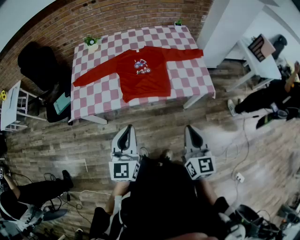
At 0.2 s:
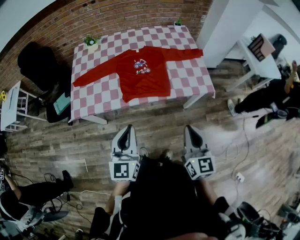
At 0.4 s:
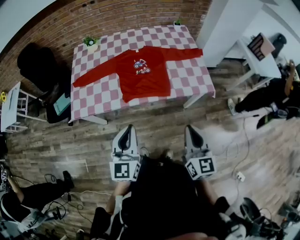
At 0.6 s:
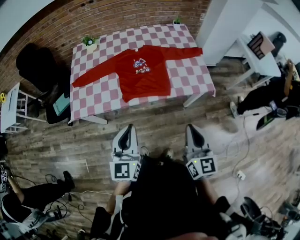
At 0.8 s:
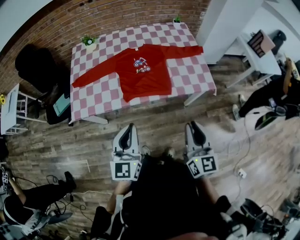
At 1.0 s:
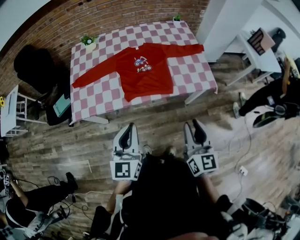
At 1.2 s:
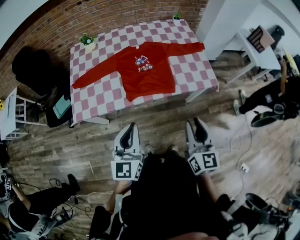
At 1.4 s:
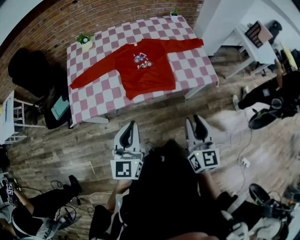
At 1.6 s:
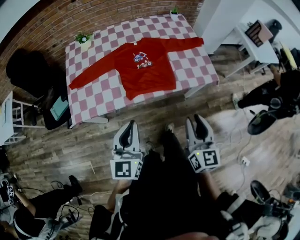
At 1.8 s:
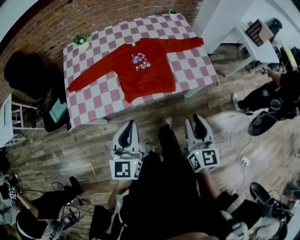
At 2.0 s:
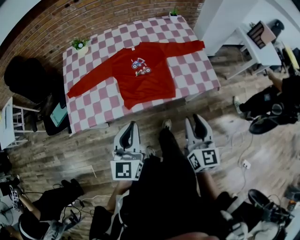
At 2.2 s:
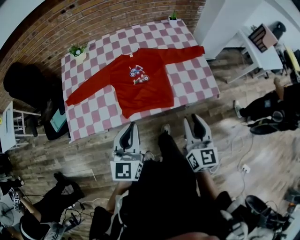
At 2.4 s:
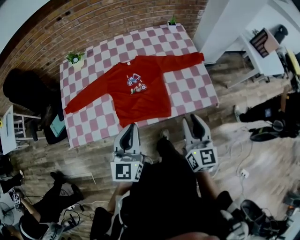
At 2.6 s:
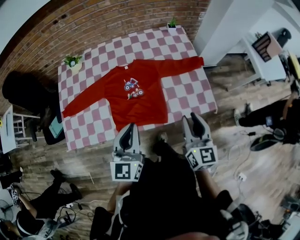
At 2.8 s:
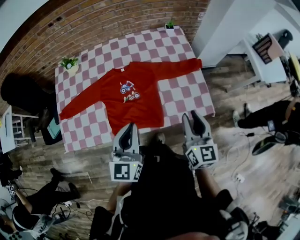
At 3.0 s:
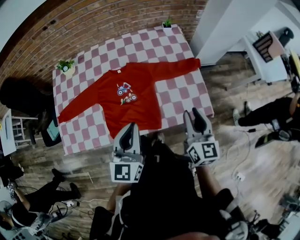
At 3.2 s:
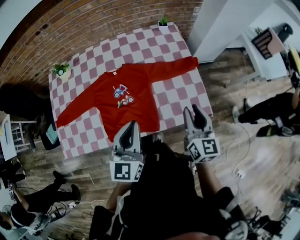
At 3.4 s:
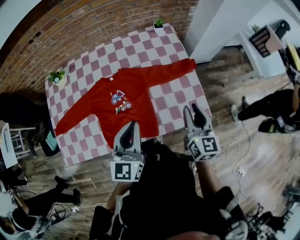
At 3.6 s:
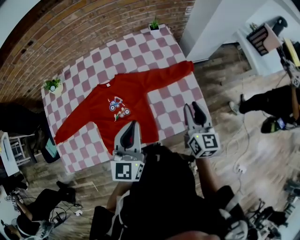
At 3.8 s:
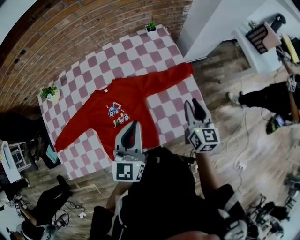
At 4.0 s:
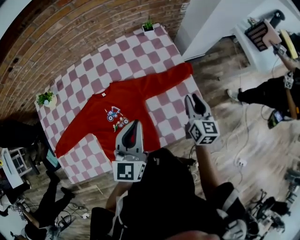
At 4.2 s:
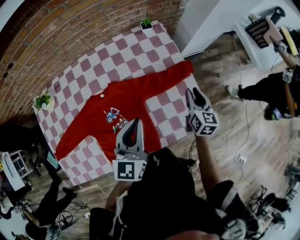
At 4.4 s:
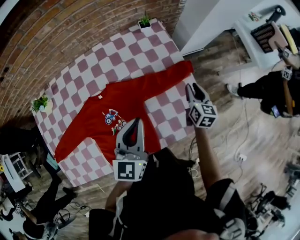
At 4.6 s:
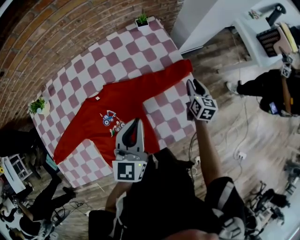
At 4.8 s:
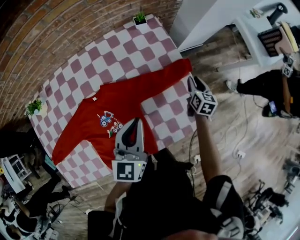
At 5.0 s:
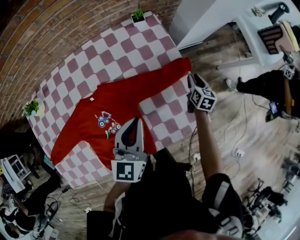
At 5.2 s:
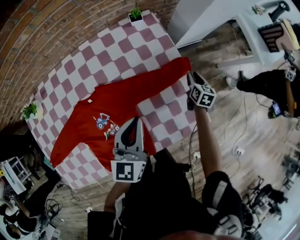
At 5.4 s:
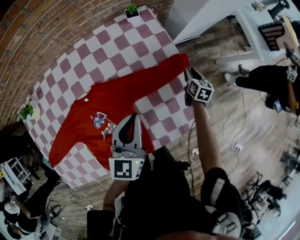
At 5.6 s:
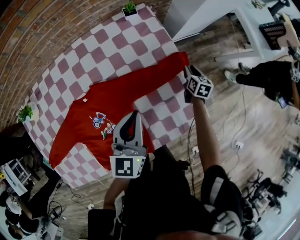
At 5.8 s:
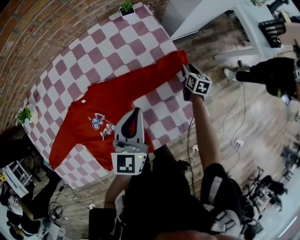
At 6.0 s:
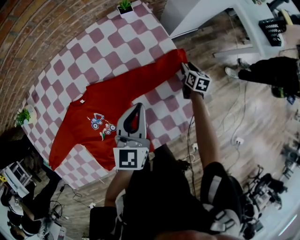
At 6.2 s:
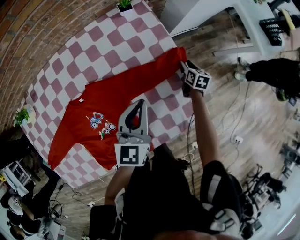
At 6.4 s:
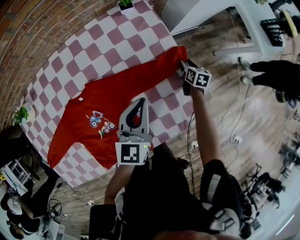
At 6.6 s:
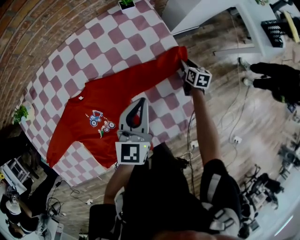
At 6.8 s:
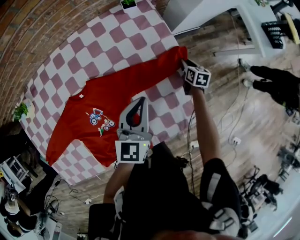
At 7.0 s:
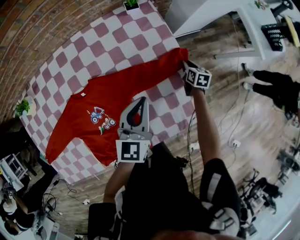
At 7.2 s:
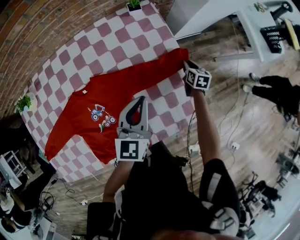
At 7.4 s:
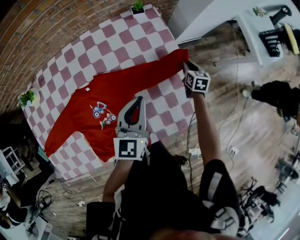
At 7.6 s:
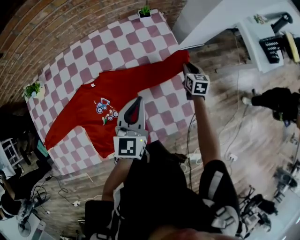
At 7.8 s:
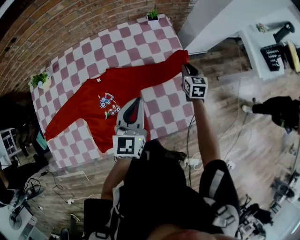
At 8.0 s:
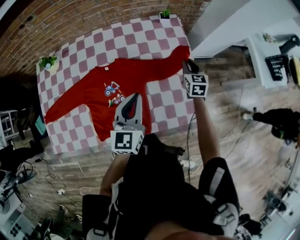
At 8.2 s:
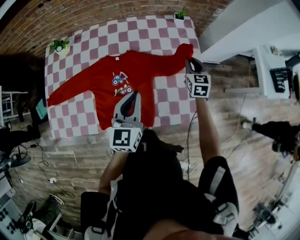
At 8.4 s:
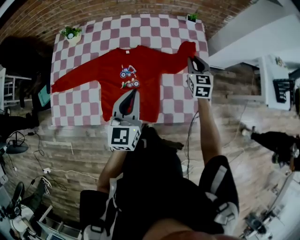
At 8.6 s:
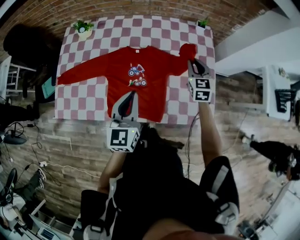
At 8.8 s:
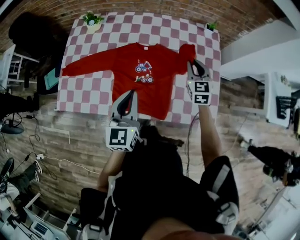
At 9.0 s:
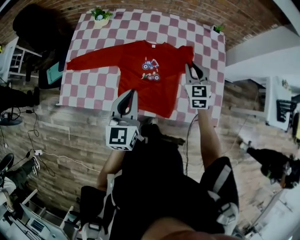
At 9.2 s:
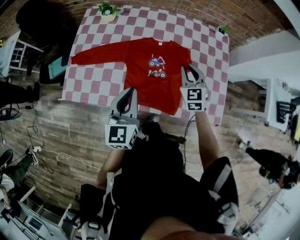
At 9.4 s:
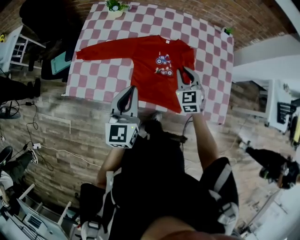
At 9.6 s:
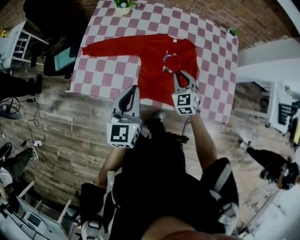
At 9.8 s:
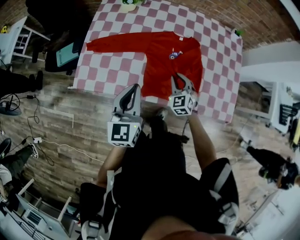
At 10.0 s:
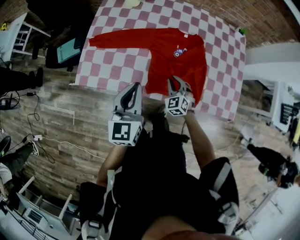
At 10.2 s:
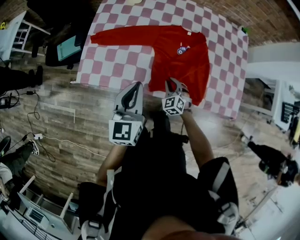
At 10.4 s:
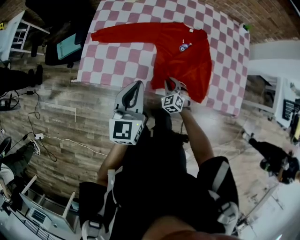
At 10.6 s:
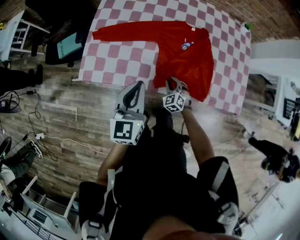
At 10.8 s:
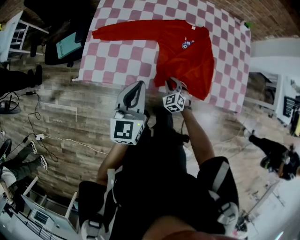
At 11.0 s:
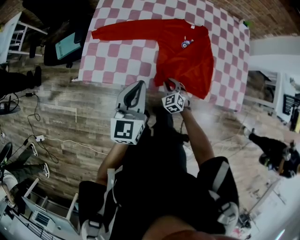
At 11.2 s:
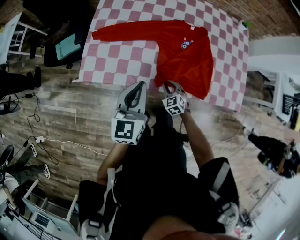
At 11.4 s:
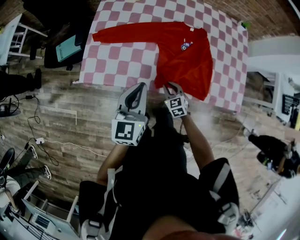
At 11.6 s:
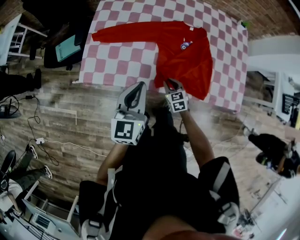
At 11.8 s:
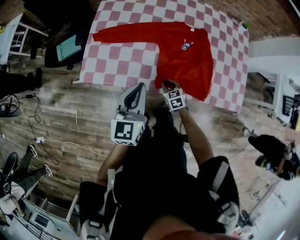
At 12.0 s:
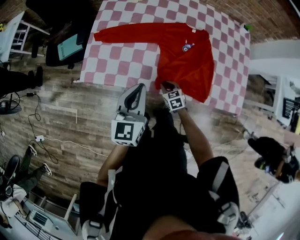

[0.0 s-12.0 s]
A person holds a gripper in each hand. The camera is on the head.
0.0 to 1.6 s: Both grippers travel together to the left, about 5 cm. The right gripper opens.
1.6 to 3.0 s: The grippers both shift forward and to the right by roughly 35 cm.
3.0 to 4.4 s: The right gripper goes some 35 cm forward and downward, and swivels some 20 degrees; the left gripper shifts some 25 cm forward.
4.4 to 6.0 s: The right gripper heads downward, forward and to the right, covering roughly 25 cm; the left gripper shifts approximately 15 cm forward, downward and to the right.
6.0 to 7.6 s: The left gripper travels backward by about 5 cm. The right gripper is displaced upward and to the left by some 10 cm, and turns by roughly 20 degrees.
7.6 to 9.0 s: The right gripper changes place by approximately 40 cm, and rotates some 50 degrees. The left gripper changes place by roughly 35 cm, and changes its angle by some 30 degrees.
9.0 to 10.4 s: The left gripper heads to the left, covering roughly 20 cm; the right gripper moves downward, to the left and backward, roughly 40 cm, and rotates about 30 degrees.
10.4 to 12.0 s: The right gripper swivels roughly 30 degrees.

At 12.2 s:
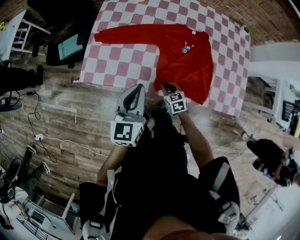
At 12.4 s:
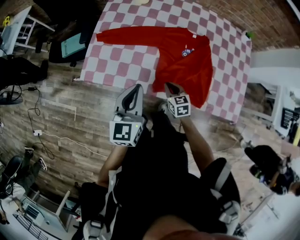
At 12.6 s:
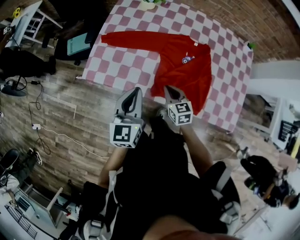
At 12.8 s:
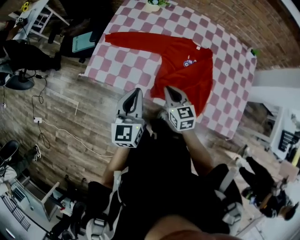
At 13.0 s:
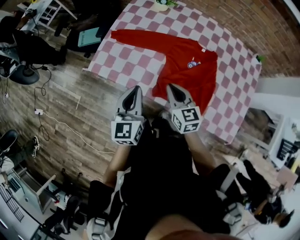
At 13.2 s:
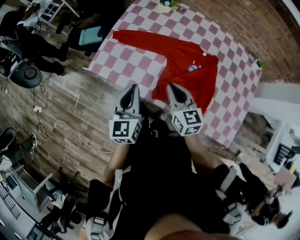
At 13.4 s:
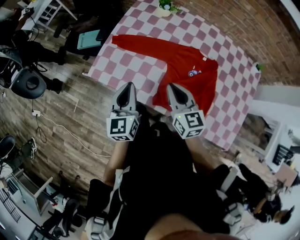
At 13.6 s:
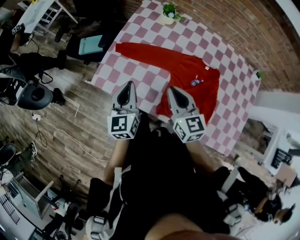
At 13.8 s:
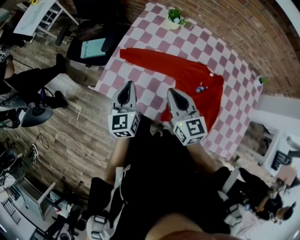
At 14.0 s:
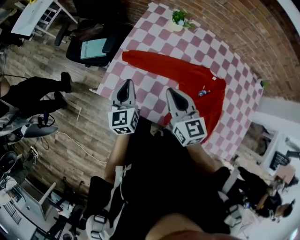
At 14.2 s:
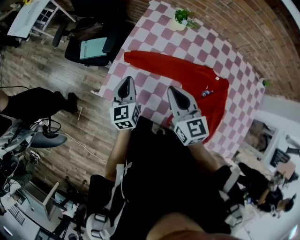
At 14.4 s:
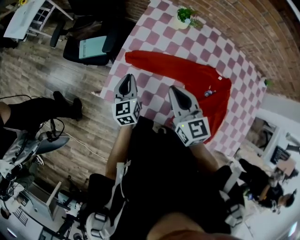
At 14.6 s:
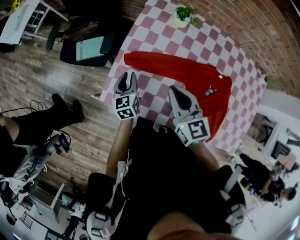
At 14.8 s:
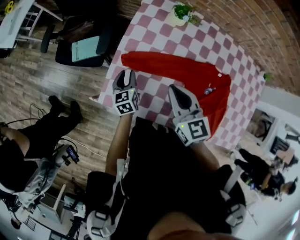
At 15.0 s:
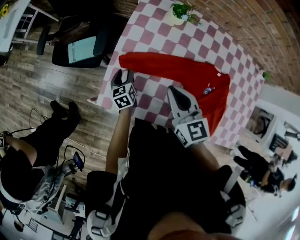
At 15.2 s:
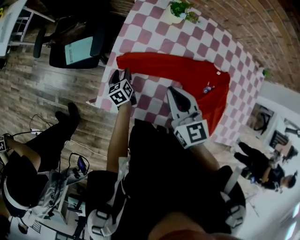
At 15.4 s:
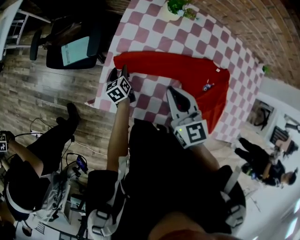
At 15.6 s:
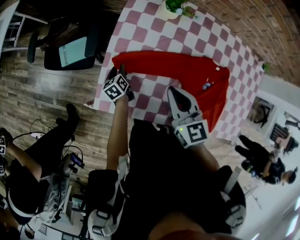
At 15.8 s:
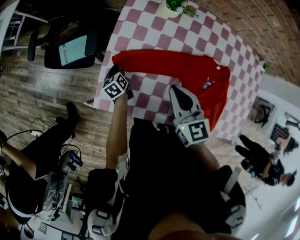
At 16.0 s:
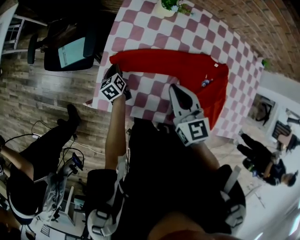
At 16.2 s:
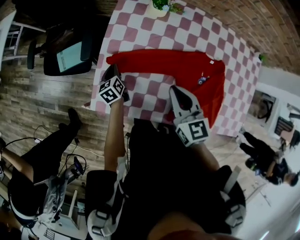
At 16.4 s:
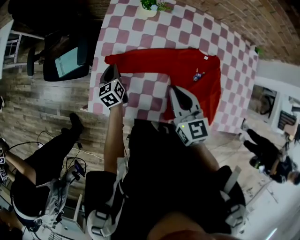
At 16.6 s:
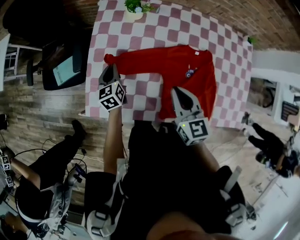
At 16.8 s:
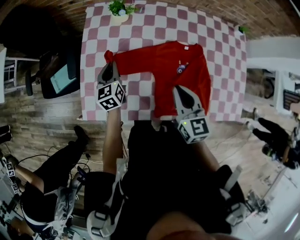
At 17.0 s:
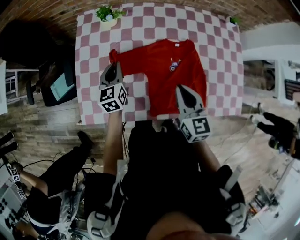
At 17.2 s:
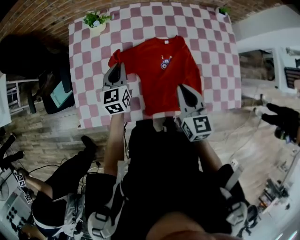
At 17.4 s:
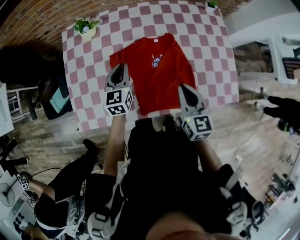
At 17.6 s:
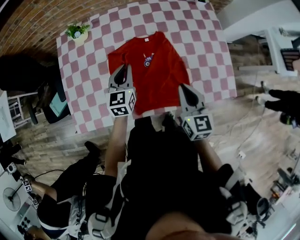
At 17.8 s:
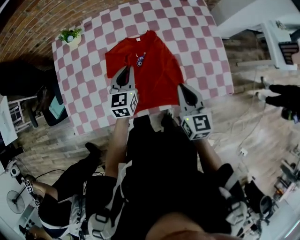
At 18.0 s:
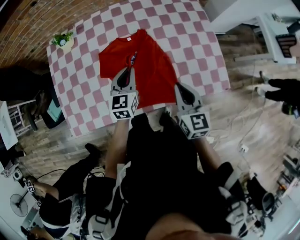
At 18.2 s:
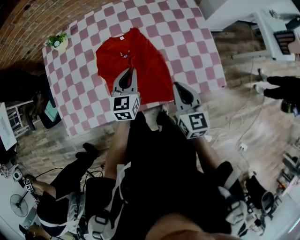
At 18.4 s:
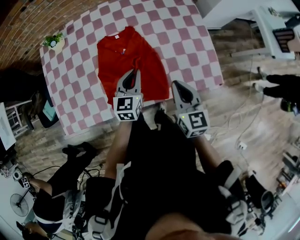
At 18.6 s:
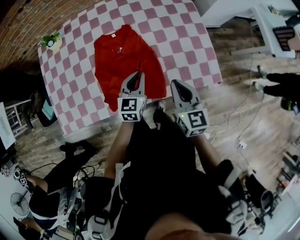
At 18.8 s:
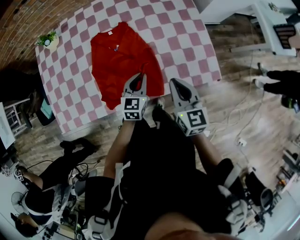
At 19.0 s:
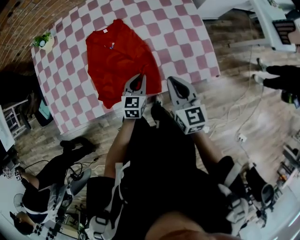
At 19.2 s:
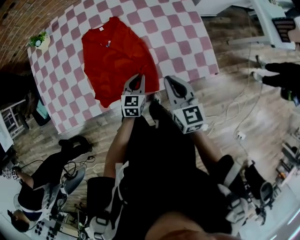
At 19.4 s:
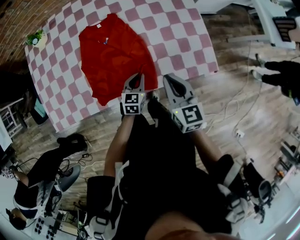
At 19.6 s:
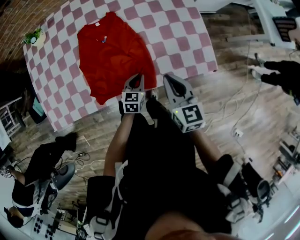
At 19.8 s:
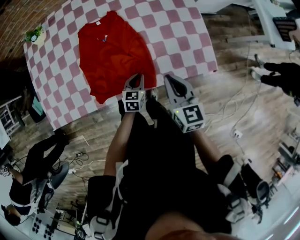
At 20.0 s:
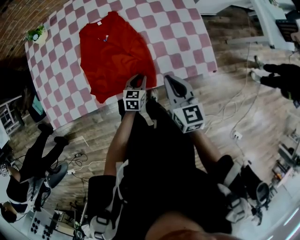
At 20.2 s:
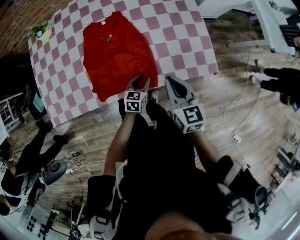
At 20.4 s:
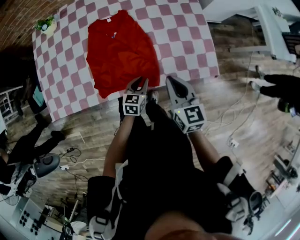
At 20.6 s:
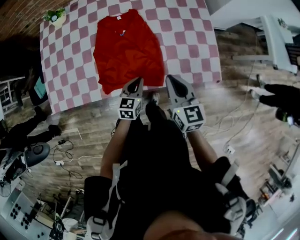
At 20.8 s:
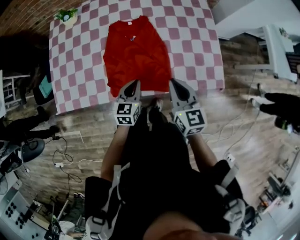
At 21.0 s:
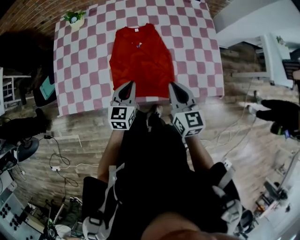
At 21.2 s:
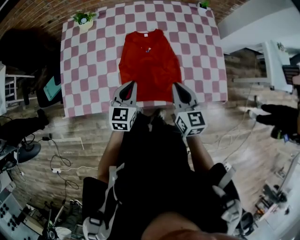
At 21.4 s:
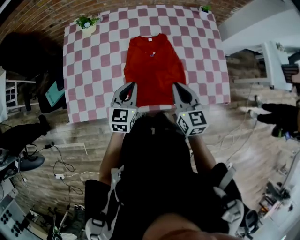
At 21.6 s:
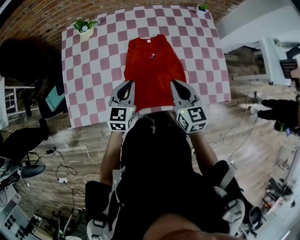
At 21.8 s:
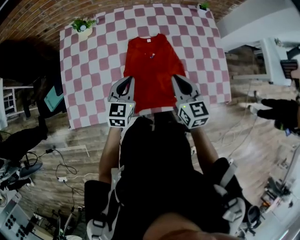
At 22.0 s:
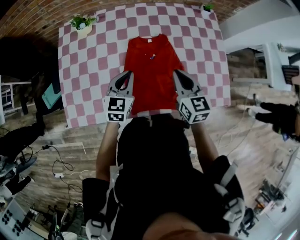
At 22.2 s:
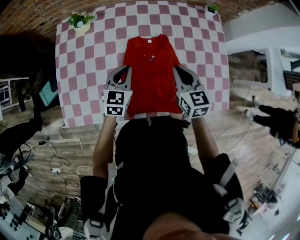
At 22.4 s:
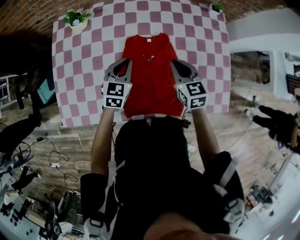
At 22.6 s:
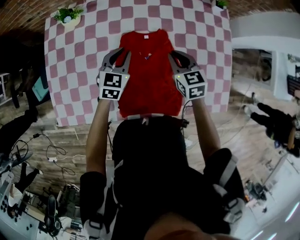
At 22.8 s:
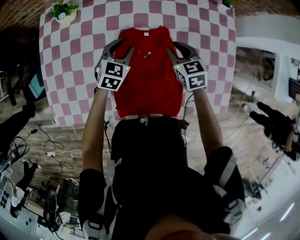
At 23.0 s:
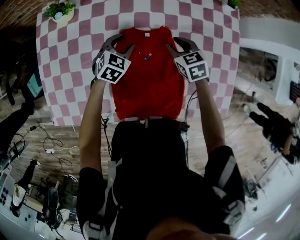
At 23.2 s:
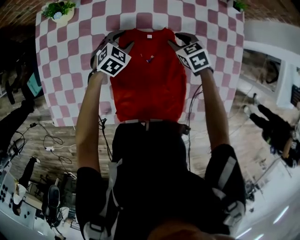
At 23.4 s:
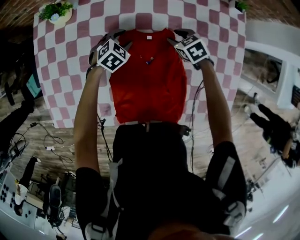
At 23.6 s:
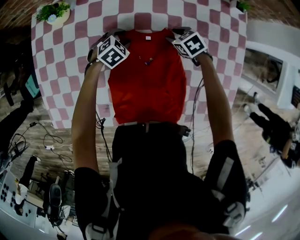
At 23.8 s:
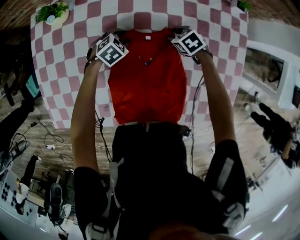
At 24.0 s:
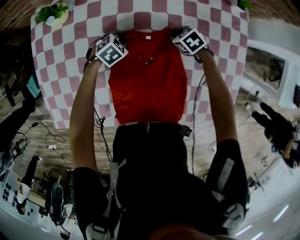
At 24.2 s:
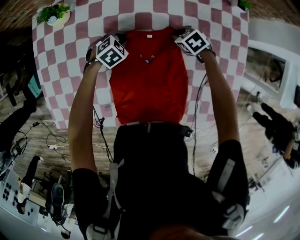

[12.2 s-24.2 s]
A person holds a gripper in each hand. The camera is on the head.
12.2 to 13.8 s: The right gripper goes roughly 35 cm upward and forward, and tips its fingers upward by roughly 30 degrees. The left gripper moves forward and to the left, roughly 20 cm, and swivels about 20 degrees.
13.8 to 15.2 s: The right gripper heads forward and to the left, covering roughly 15 cm. The left gripper is displaced downward and forward by roughly 35 cm, rotates about 30 degrees, and opens its fingers.
15.2 to 16.6 s: The right gripper heads to the right and backward, covering roughly 15 cm. Meanwhile the left gripper travels upward and to the right by roughly 15 cm, changes its angle by approximately 20 degrees, and closes its fingers.
16.6 to 18.2 s: The right gripper shifts by approximately 40 cm, and swivels roughly 30 degrees. The left gripper shifts by about 50 cm, and changes its angle by about 40 degrees.
18.2 to 19.8 s: The left gripper goes about 25 cm downward, to the right and backward, and swivels approximately 20 degrees, while the right gripper goes roughly 5 cm to the right.
19.8 to 21.2 s: The right gripper heads to the left and upward, covering approximately 15 cm, while the left gripper heads upward and to the left, covering approximately 30 cm, changes its angle by some 20 degrees, and opens, then closes once more.
21.2 to 22.6 s: The right gripper heads forward and downward, covering approximately 30 cm, and turns by some 20 degrees; the left gripper heads forward, covering about 25 cm.
22.6 to 24.2 s: The two grippers go approximately 25 cm downward and forward. The right gripper points its fingers approximately 30 degrees further downward, and opens, then closes once more; the left gripper tilts its fingers about 30 degrees downward, and opens, then closes again.
